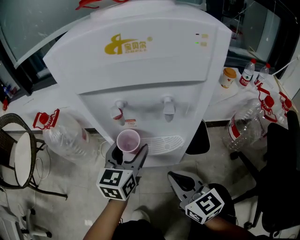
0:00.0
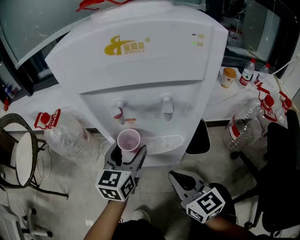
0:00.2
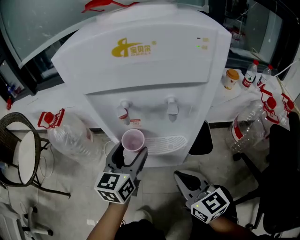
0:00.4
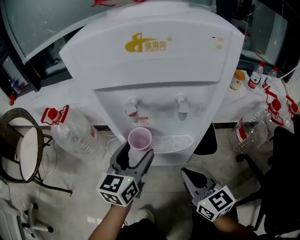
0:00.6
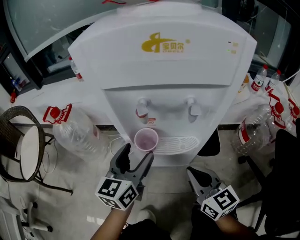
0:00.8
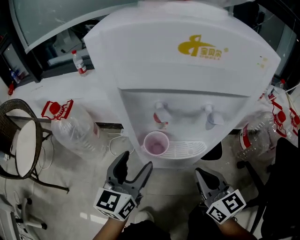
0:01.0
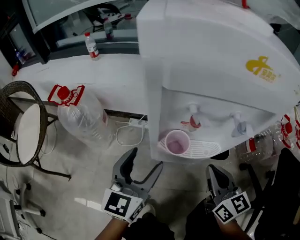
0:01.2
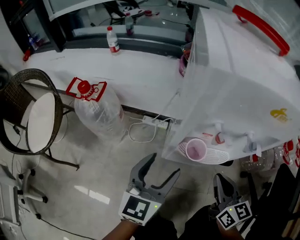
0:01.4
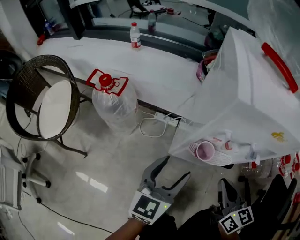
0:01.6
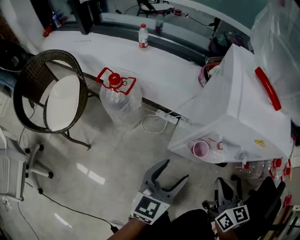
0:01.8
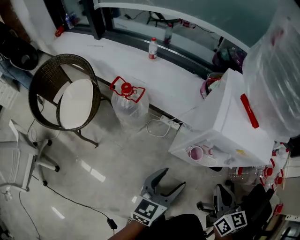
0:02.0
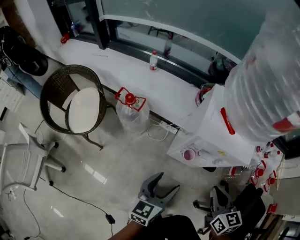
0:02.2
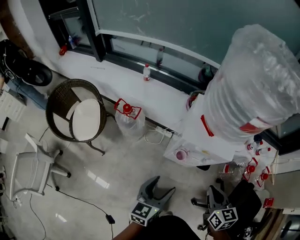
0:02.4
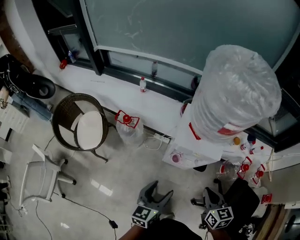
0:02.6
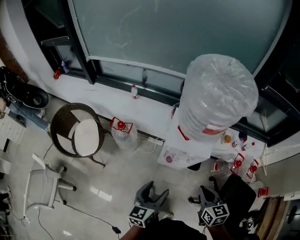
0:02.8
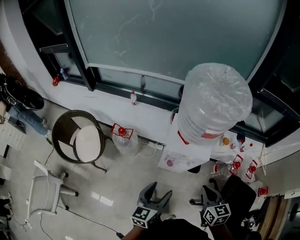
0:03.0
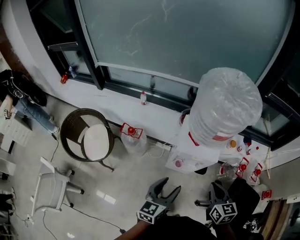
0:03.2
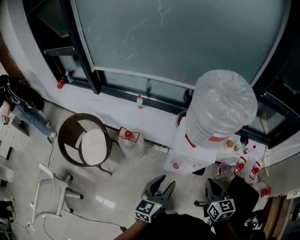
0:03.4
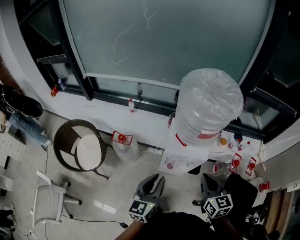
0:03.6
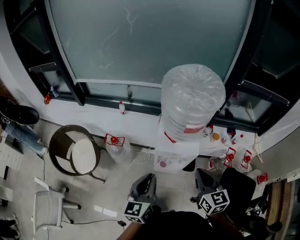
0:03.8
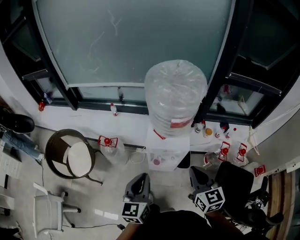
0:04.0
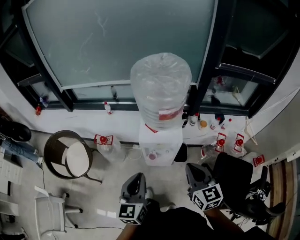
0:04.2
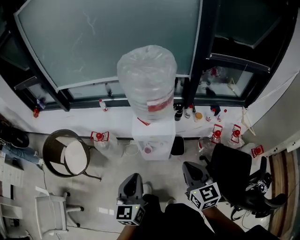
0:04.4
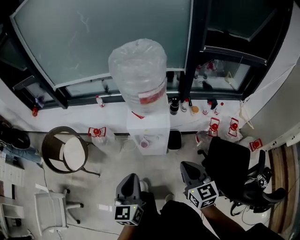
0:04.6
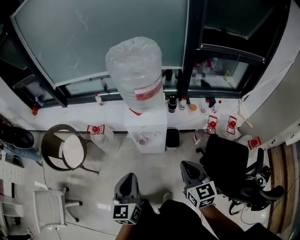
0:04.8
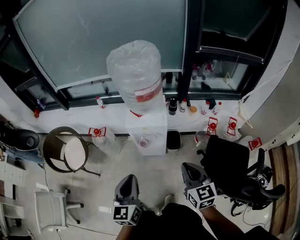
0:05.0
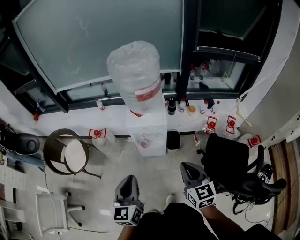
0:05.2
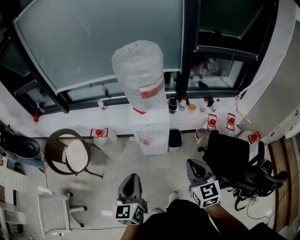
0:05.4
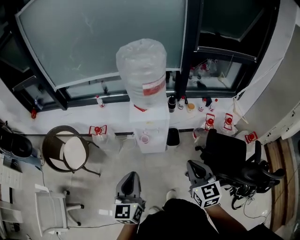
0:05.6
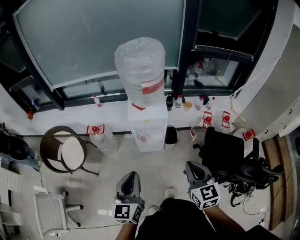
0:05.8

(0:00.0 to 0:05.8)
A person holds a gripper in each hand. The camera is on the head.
0:00.0 - 0:01.4: The right gripper changes place by roughly 5 cm, while the left gripper goes about 15 cm to the left, upward and backward.
0:01.4 - 0:02.8: Both grippers move upward, roughly 50 cm.
0:02.8 - 0:04.4: Both grippers travel together upward, backward and to the right, some 15 cm. The left gripper closes up.
0:04.4 - 0:05.8: Both grippers move backward, approximately 15 cm.

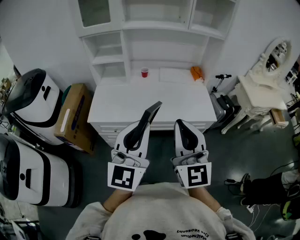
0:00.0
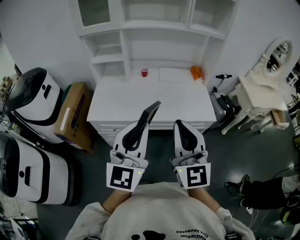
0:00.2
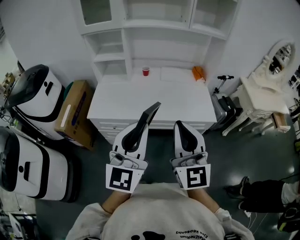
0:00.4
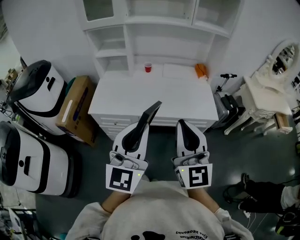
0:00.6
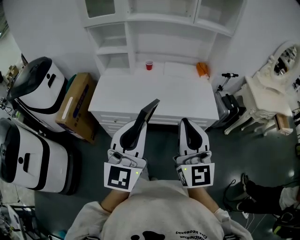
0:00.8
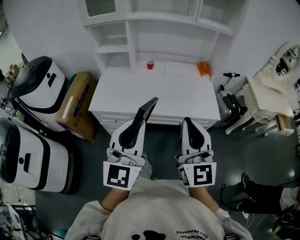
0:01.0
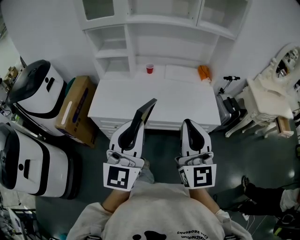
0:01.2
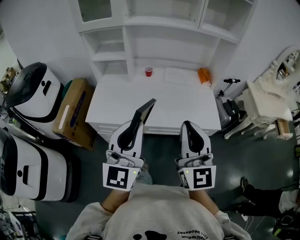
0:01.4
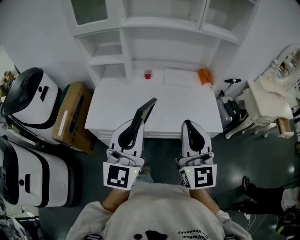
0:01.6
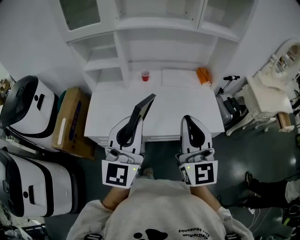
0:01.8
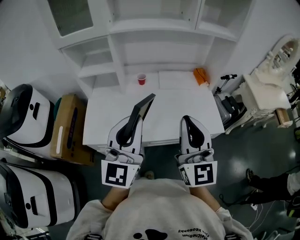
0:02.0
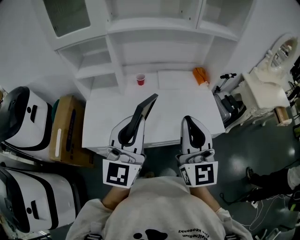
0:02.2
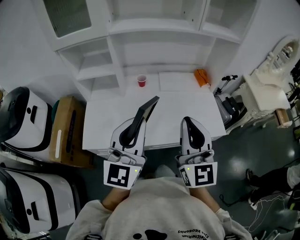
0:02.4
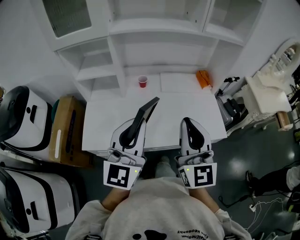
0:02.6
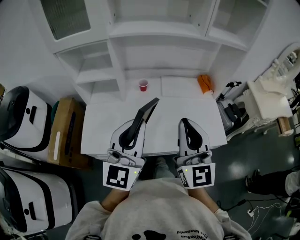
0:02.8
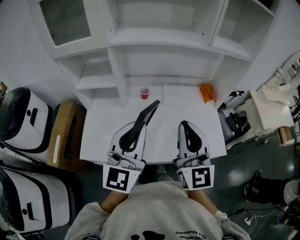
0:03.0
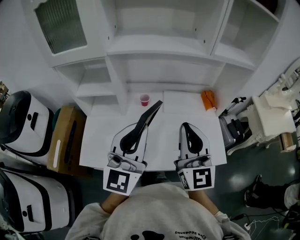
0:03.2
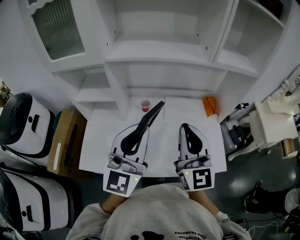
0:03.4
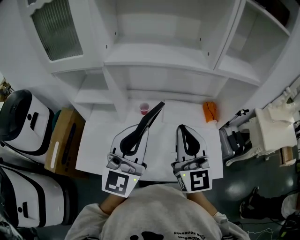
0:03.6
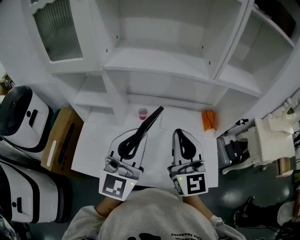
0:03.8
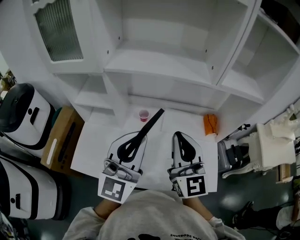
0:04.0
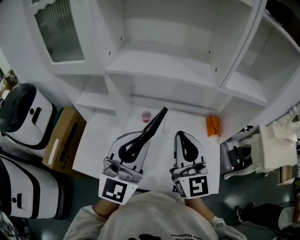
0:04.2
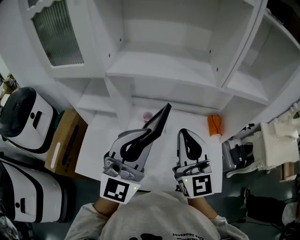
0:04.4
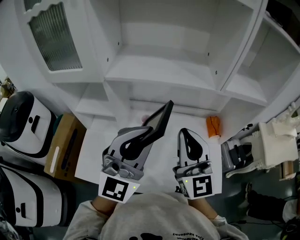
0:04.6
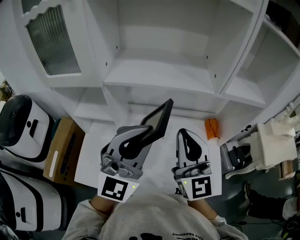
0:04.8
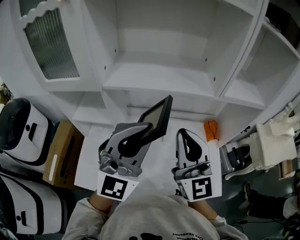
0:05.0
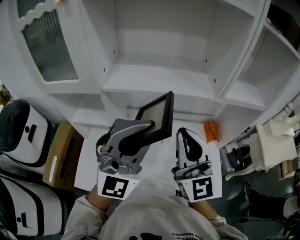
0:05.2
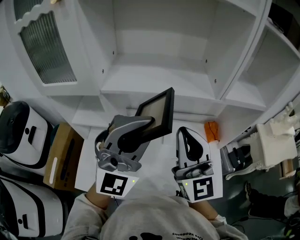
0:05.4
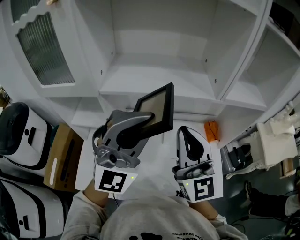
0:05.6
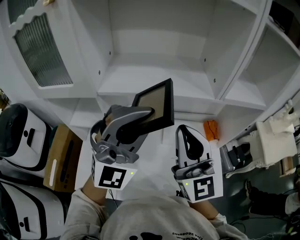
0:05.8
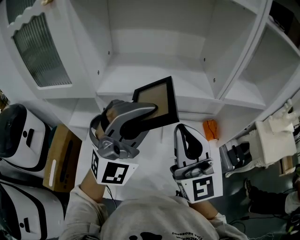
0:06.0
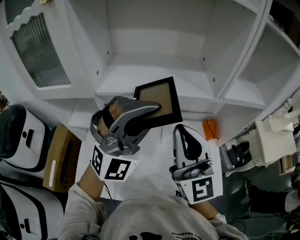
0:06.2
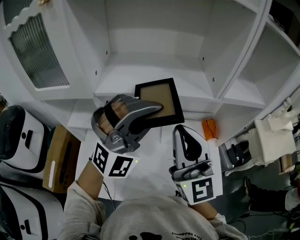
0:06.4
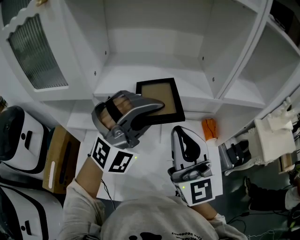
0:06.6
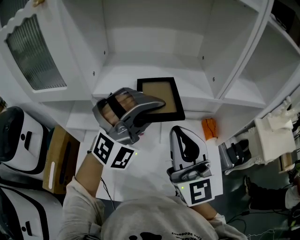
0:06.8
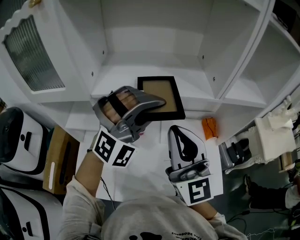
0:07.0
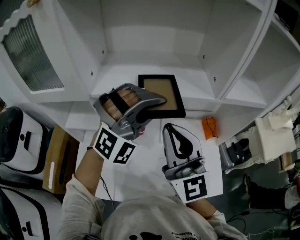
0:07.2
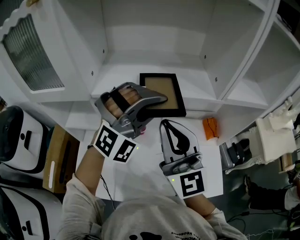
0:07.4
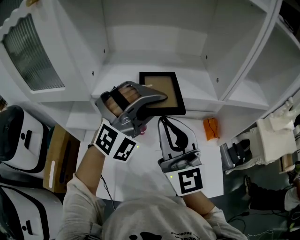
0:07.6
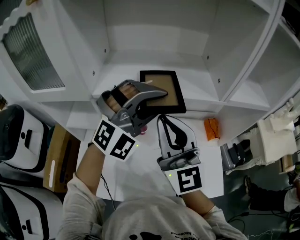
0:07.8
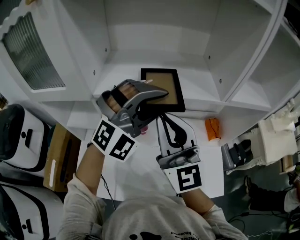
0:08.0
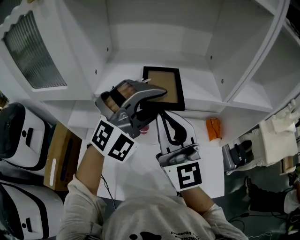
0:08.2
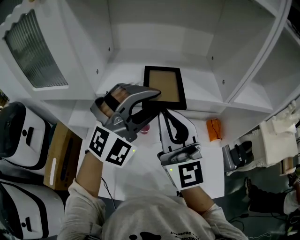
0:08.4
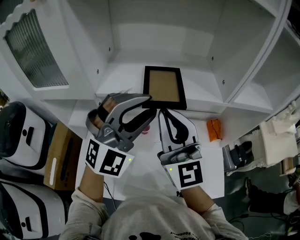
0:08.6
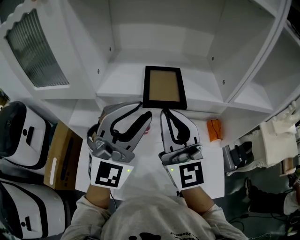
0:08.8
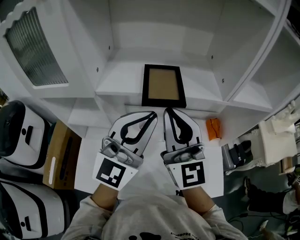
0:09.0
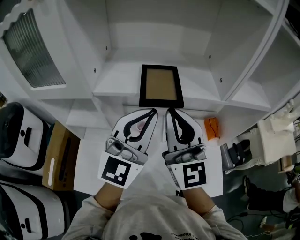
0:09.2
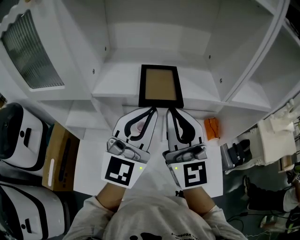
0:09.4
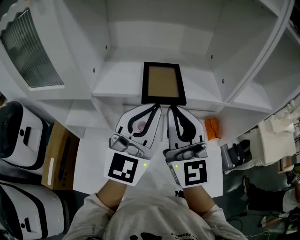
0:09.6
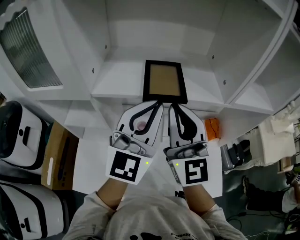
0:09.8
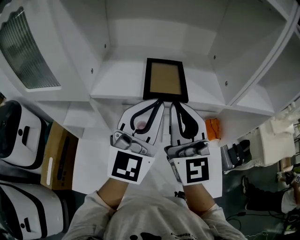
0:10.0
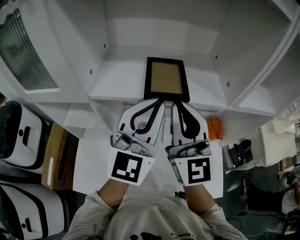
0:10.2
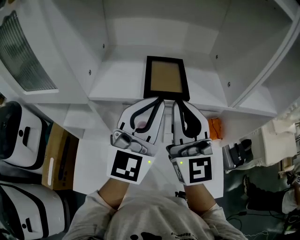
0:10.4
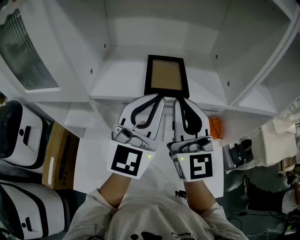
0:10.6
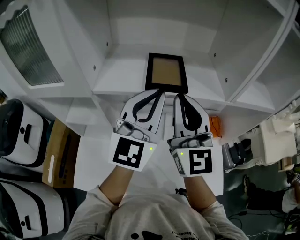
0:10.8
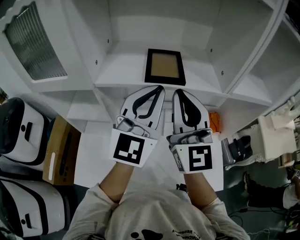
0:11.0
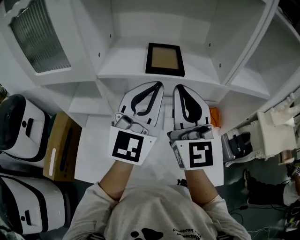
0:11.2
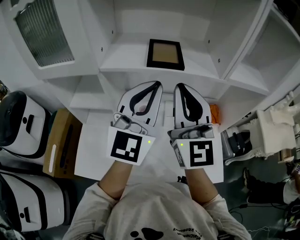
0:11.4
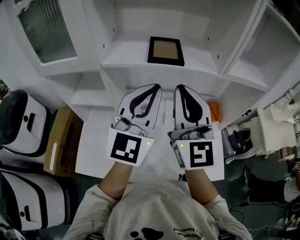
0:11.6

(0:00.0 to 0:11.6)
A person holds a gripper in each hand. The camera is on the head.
0:00.0 - 0:01.4: Both grippers travel together forward, some 10 cm.
0:01.4 - 0:02.8: Both grippers travel together forward, roughly 20 cm.
0:02.8 - 0:04.4: The right gripper travels forward by about 20 cm, while the left gripper travels forward and upward by roughly 15 cm, and changes its angle by about 20 degrees.
0:04.4 - 0:05.8: The right gripper travels upward by about 5 cm, while the left gripper shifts some 10 cm upward and forward, and rotates roughly 30 degrees.
0:05.8 - 0:07.2: The left gripper goes some 10 cm forward and downward, and changes its angle by roughly 30 degrees.
0:07.2 - 0:08.8: The left gripper travels to the left by some 5 cm, swivels about 40 degrees, and opens.
0:08.8 - 0:10.2: The left gripper heads forward, covering some 5 cm, swivels some 20 degrees, and closes up. Meanwhile the right gripper moves roughly 5 cm.
0:10.2 - 0:11.6: Both grippers travel together backward, roughly 10 cm.

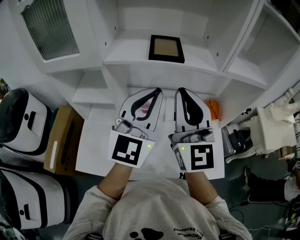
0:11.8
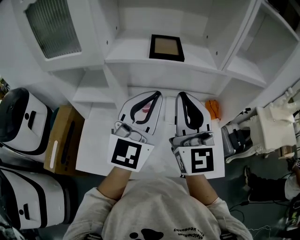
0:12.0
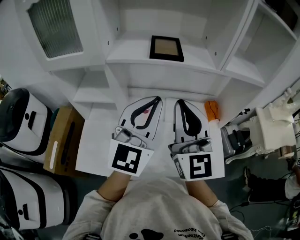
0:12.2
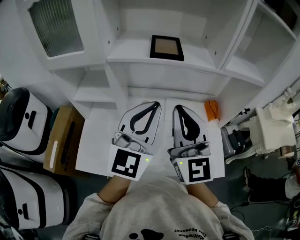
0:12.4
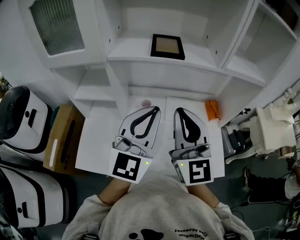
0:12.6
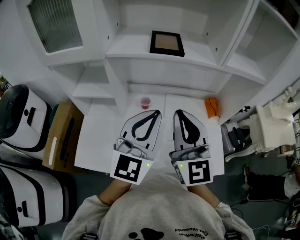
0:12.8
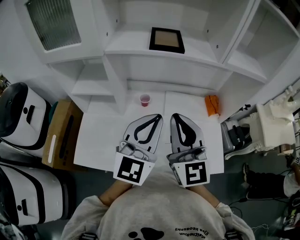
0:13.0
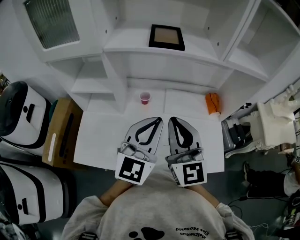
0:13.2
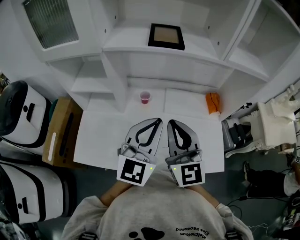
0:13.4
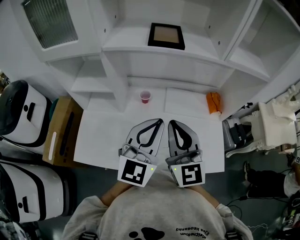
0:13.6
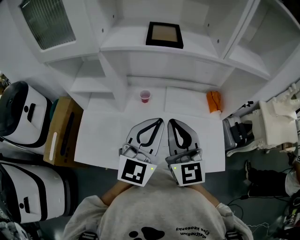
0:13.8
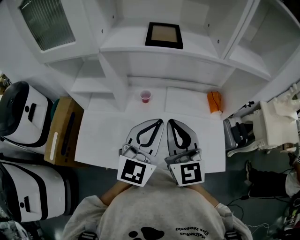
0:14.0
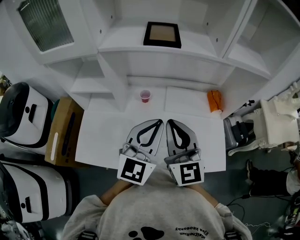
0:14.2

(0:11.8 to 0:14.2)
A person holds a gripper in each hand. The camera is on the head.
0:11.8 - 0:13.0: The two grippers go about 10 cm downward and backward.
0:13.0 - 0:14.2: The grippers make only small movements.

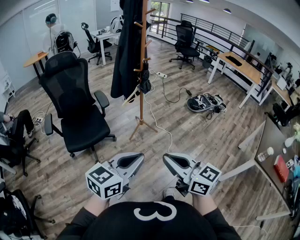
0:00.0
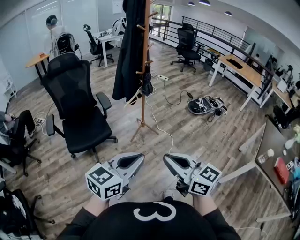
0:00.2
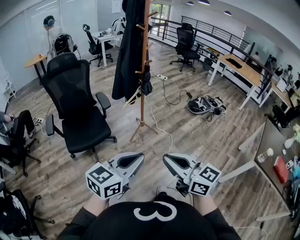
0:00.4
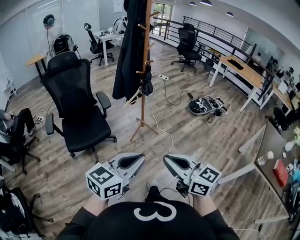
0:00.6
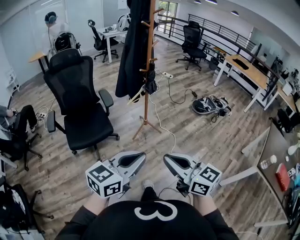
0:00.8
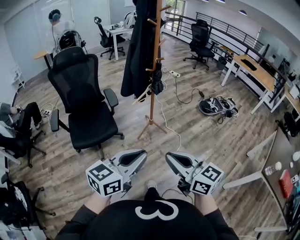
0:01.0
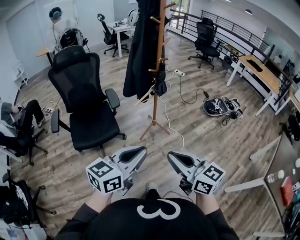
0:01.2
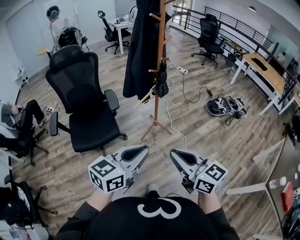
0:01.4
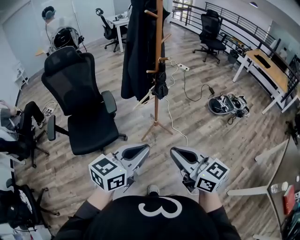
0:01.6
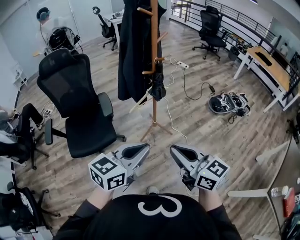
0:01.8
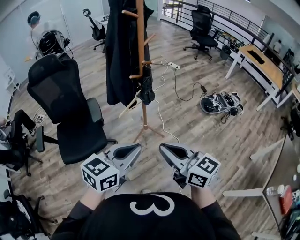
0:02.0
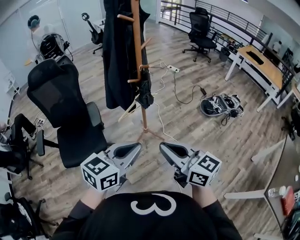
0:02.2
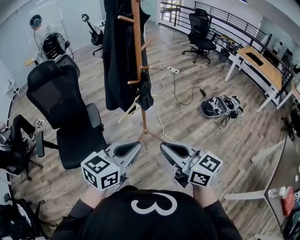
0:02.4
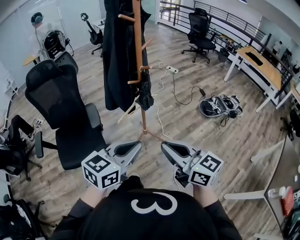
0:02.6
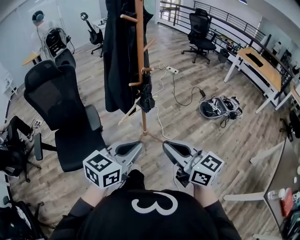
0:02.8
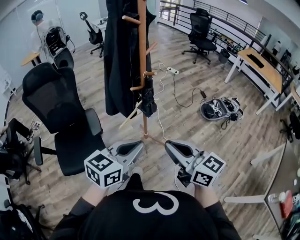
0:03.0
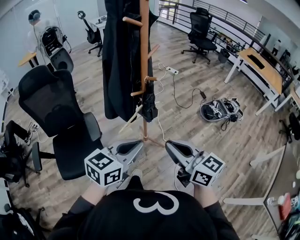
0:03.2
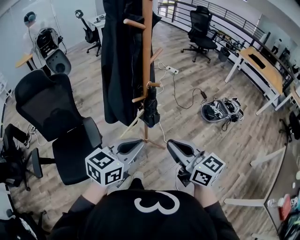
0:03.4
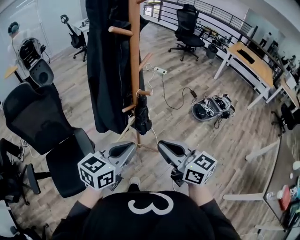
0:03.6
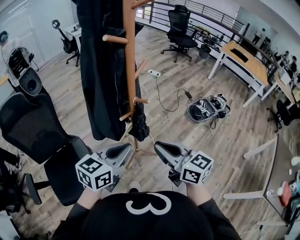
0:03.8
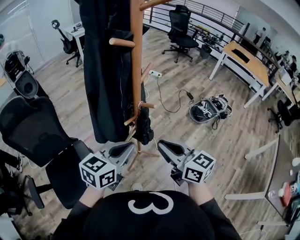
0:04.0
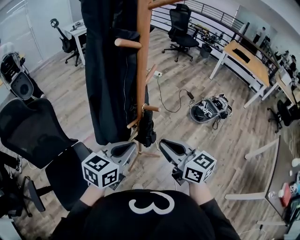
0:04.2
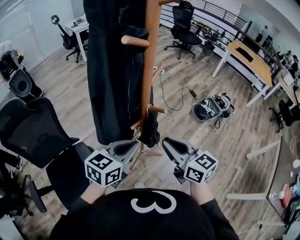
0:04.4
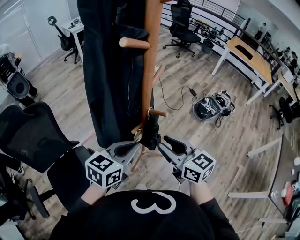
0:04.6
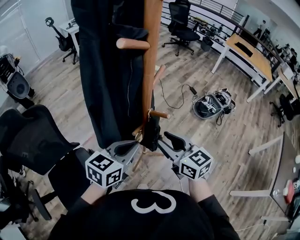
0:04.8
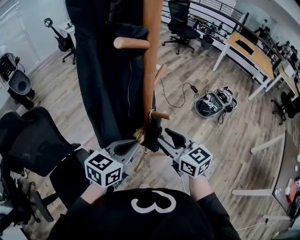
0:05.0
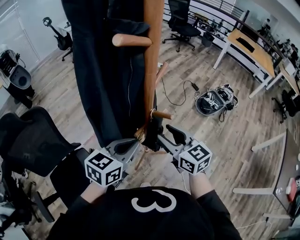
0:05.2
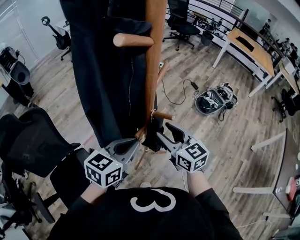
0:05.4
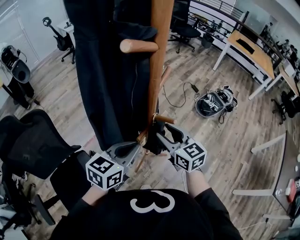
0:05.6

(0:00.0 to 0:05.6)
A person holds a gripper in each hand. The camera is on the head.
0:00.0 - 0:01.4: Both grippers travel together forward, approximately 15 cm.
0:01.4 - 0:02.8: The grippers both shift forward by approximately 20 cm.
0:02.8 - 0:04.2: Both grippers travel together forward, some 25 cm.
0:04.2 - 0:05.6: The left gripper goes about 10 cm forward. Meanwhile the right gripper is displaced forward and downward by roughly 15 cm, and opens.
